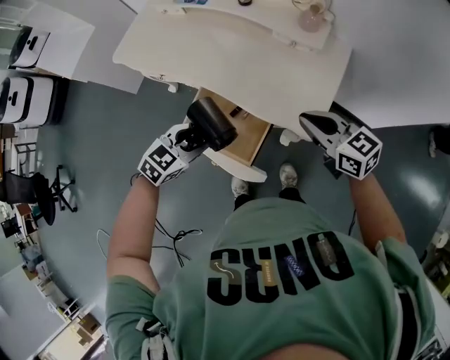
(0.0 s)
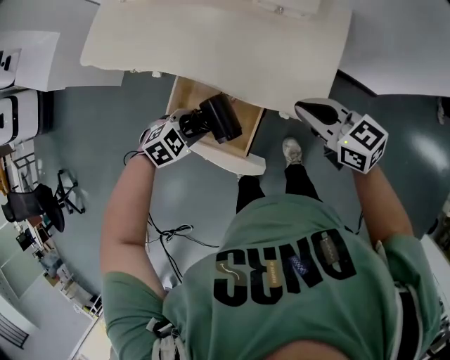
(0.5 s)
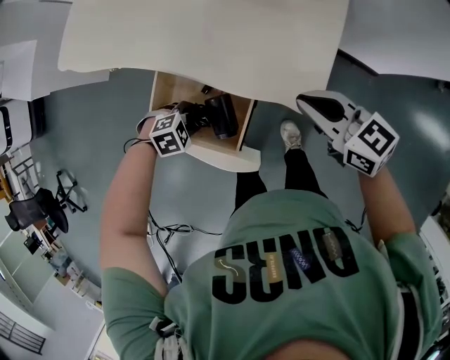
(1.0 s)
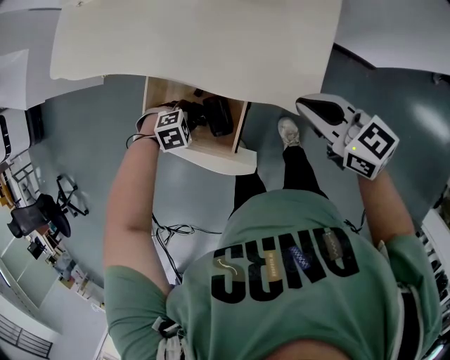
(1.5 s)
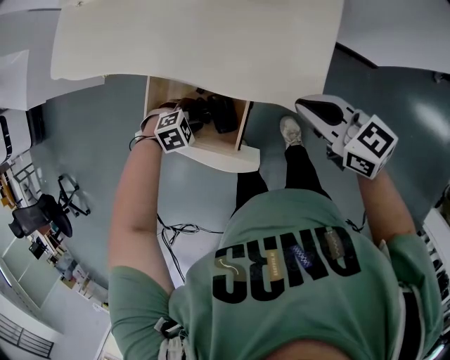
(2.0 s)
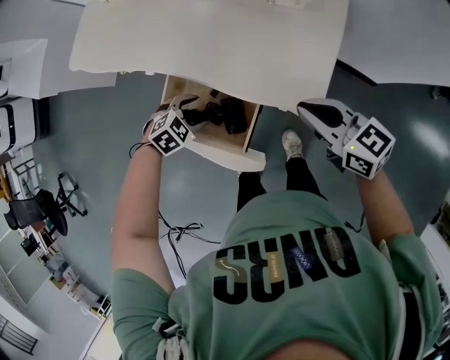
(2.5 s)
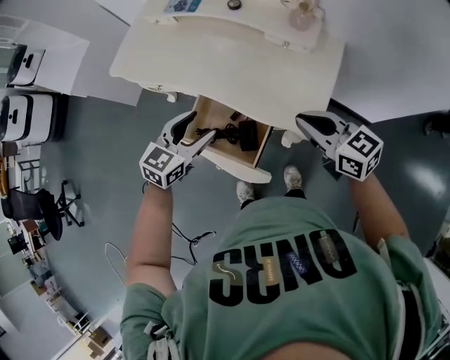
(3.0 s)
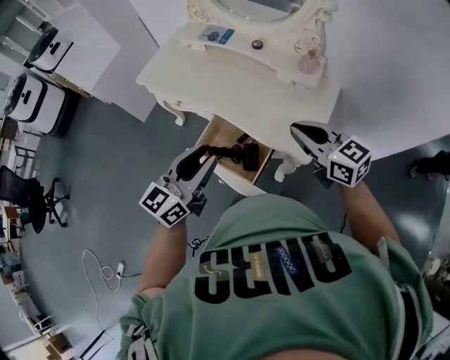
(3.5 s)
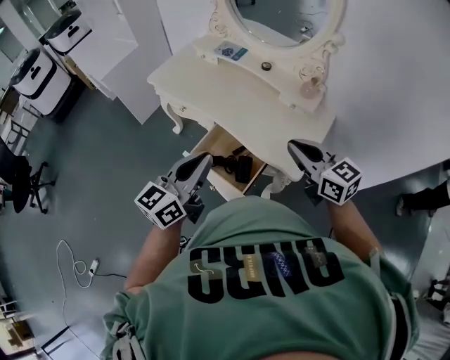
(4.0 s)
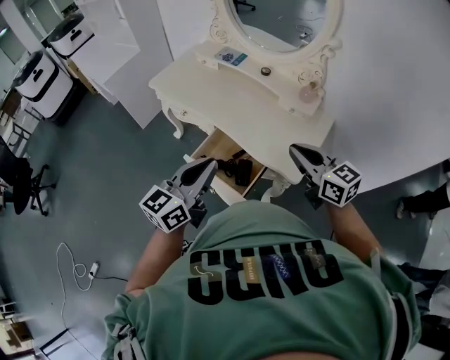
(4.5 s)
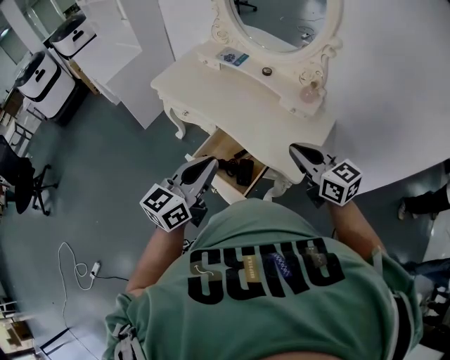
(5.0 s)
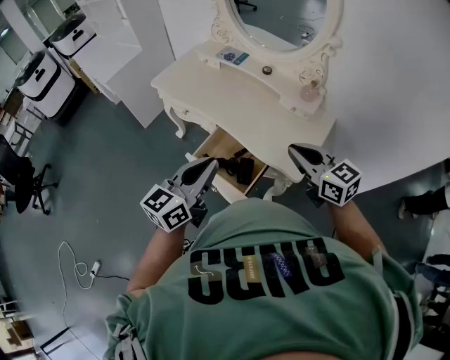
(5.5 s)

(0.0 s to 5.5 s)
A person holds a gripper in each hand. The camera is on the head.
0.0 s - 2.0 s: The right gripper moves downward, approximately 15 cm. The left gripper is displaced downward by roughly 30 cm, and angles its fingers downward, by about 30 degrees.
2.0 s - 3.5 s: The right gripper goes about 25 cm upward, while the left gripper goes roughly 50 cm upward, and angles its fingers upward, by approximately 80 degrees.
3.5 s - 5.5 s: The left gripper shifts by approximately 5 cm, and closes its fingers. The right gripper shifts by approximately 5 cm.

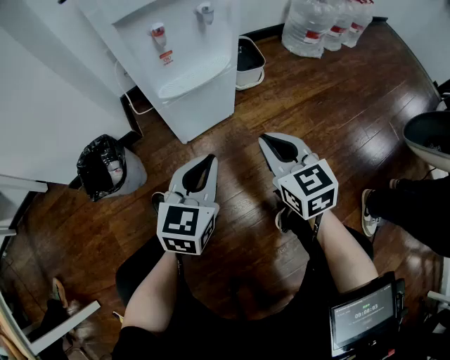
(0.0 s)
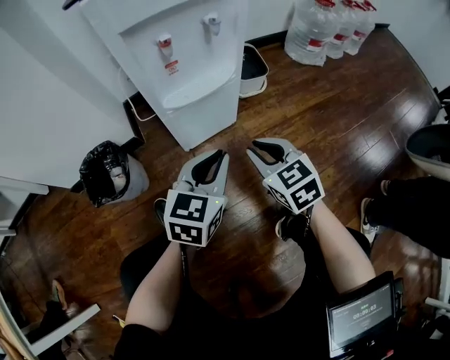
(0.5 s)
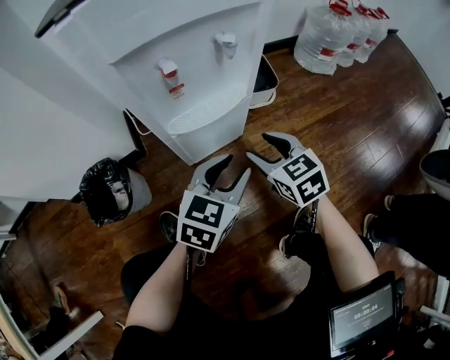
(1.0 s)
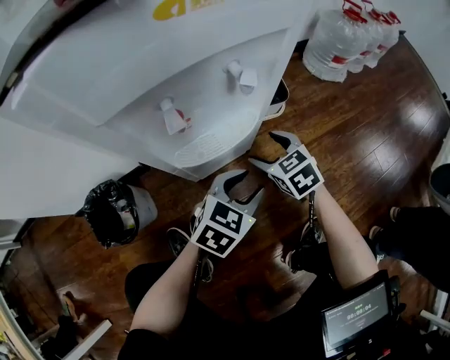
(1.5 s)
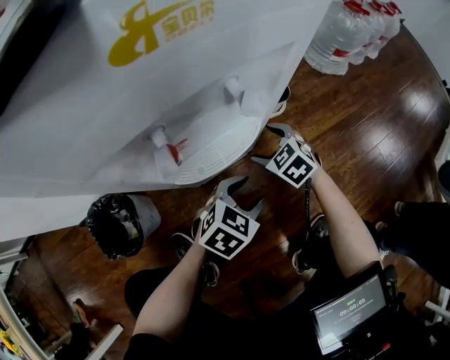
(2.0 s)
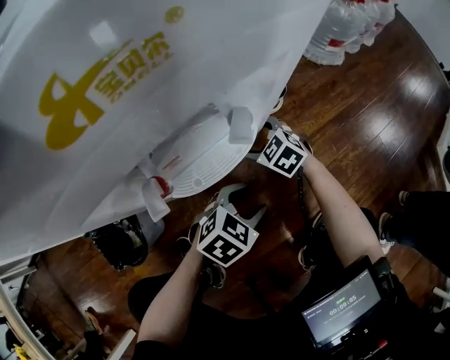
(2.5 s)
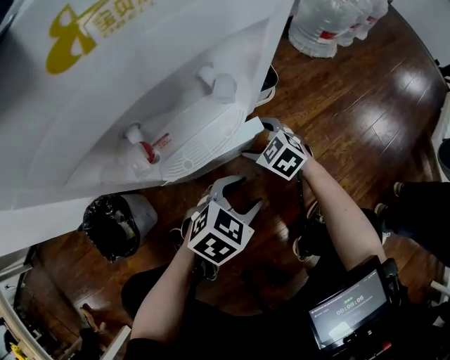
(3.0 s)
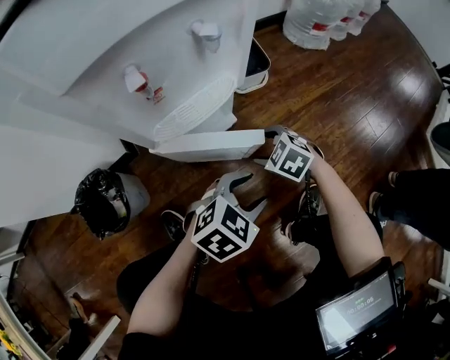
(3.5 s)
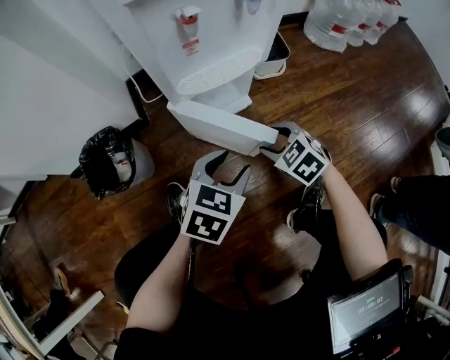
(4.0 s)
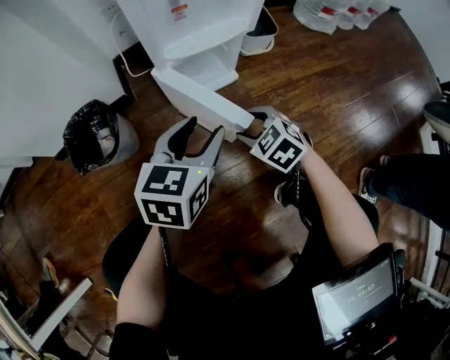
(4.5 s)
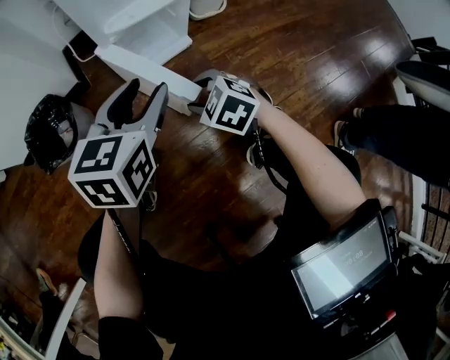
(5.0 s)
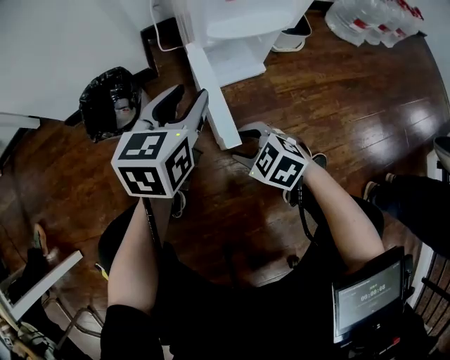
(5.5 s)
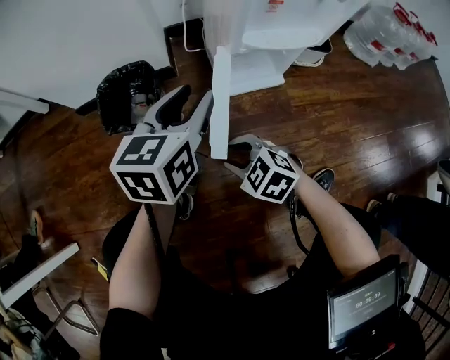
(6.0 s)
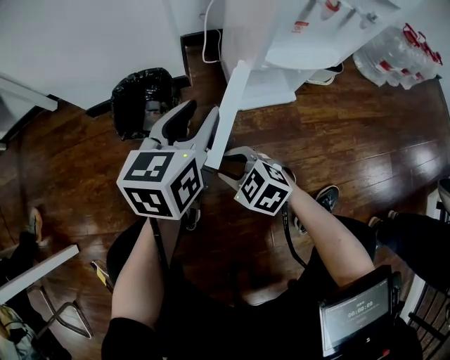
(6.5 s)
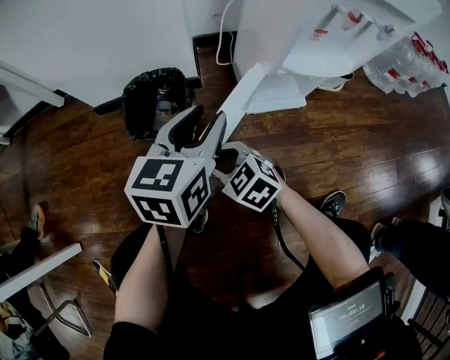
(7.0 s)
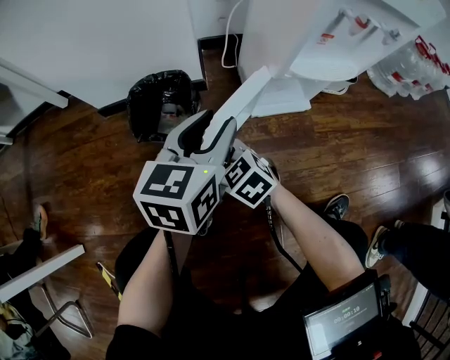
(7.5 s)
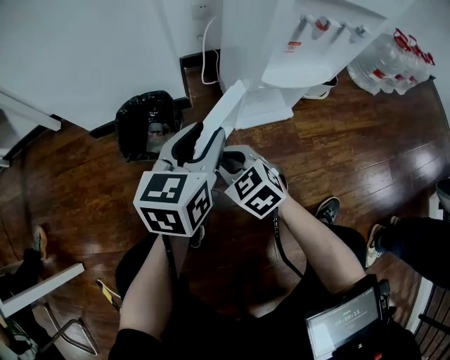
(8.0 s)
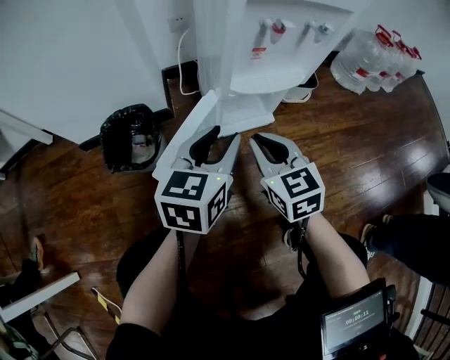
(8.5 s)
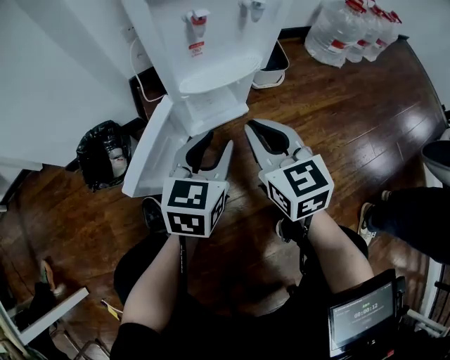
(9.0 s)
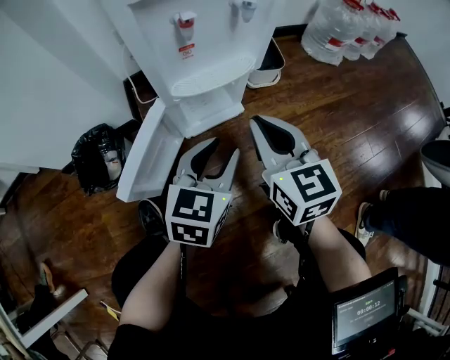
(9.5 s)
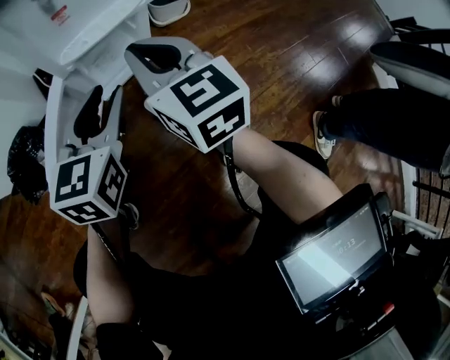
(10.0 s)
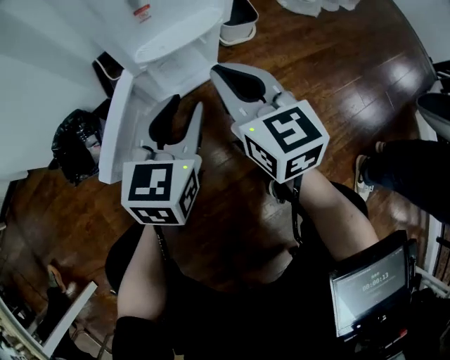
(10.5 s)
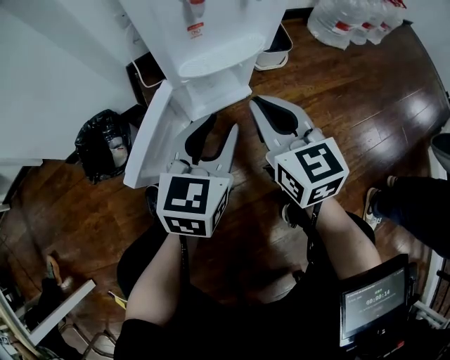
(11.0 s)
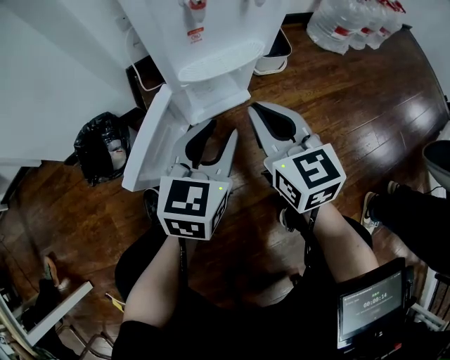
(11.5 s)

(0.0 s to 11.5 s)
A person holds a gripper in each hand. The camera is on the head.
0.0 s - 2.0 s: The right gripper goes about 30 cm forward and downward, rotates some 30 degrees, and opens up; the left gripper shifts some 20 cm forward and downward, turns by roughly 40 degrees, and opens.
2.0 s - 4.0 s: The right gripper goes approximately 20 cm backward, and closes its fingers. Meanwhile the left gripper goes about 10 cm backward.
4.0 s - 6.0 s: The left gripper moves approximately 20 cm, and rotates approximately 40 degrees. The right gripper changes place by some 25 cm, and rotates roughly 30 degrees.
6.0 s - 7.5 s: The left gripper shifts about 5 cm to the left, while the right gripper moves to the left and forward, roughly 15 cm.
7.5 s - 9.5 s: The left gripper changes place by approximately 25 cm, and rotates roughly 20 degrees. Meanwhile the right gripper moves roughly 40 cm, and swivels some 50 degrees.
9.5 s - 11.5 s: There are only small adjustments of the grippers.

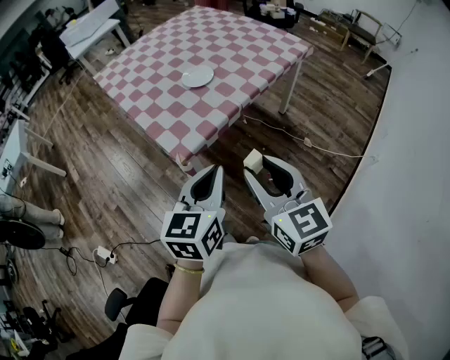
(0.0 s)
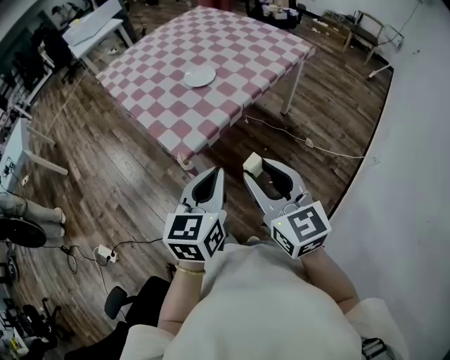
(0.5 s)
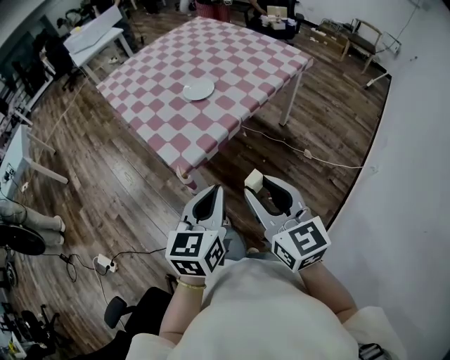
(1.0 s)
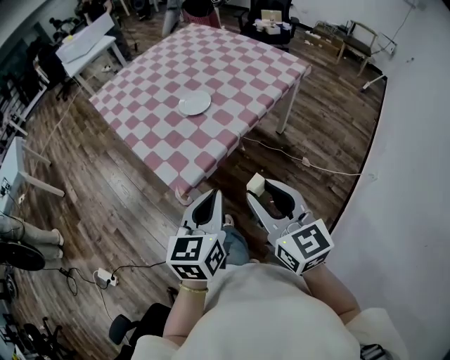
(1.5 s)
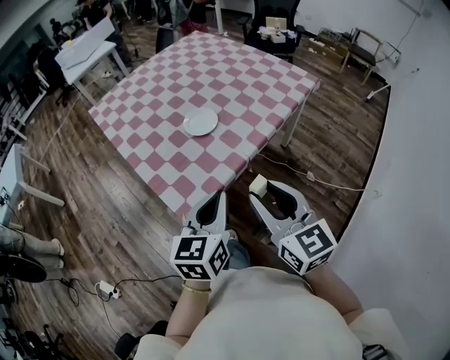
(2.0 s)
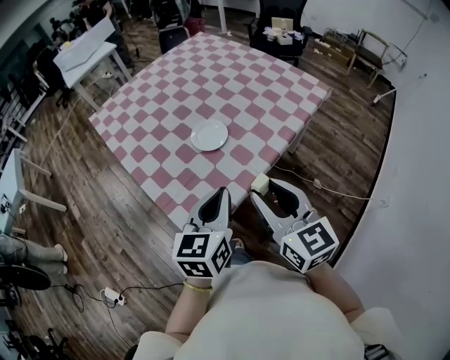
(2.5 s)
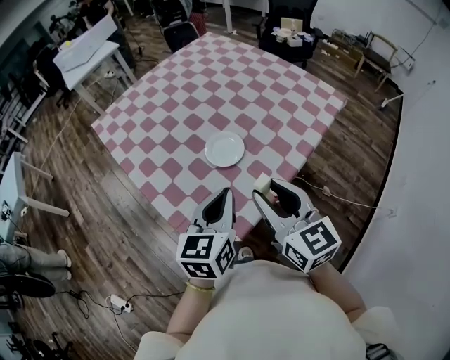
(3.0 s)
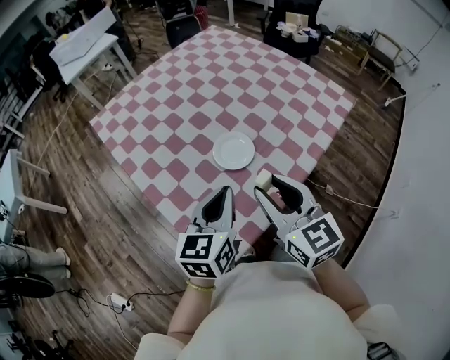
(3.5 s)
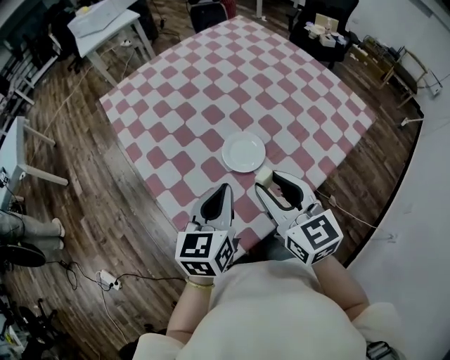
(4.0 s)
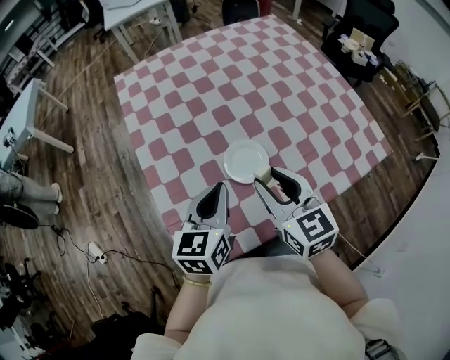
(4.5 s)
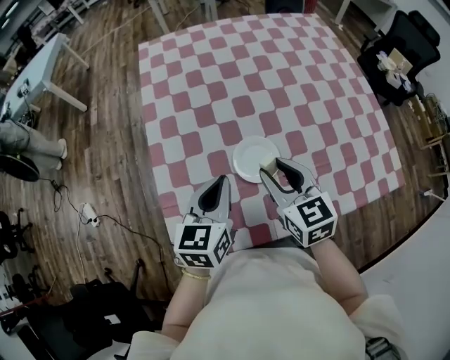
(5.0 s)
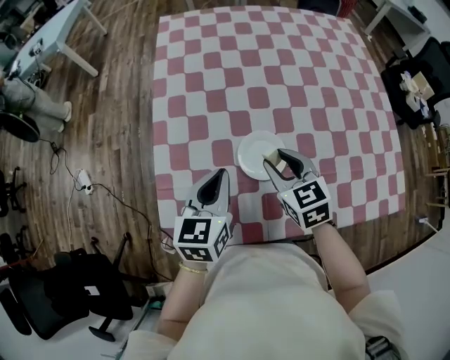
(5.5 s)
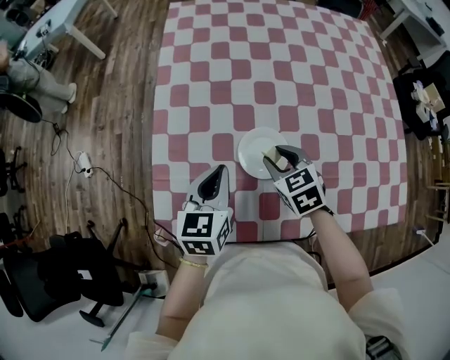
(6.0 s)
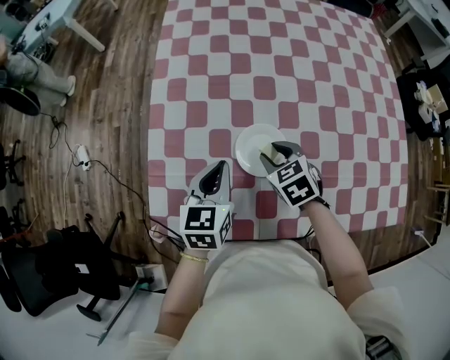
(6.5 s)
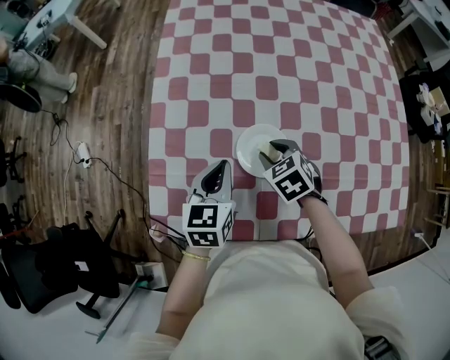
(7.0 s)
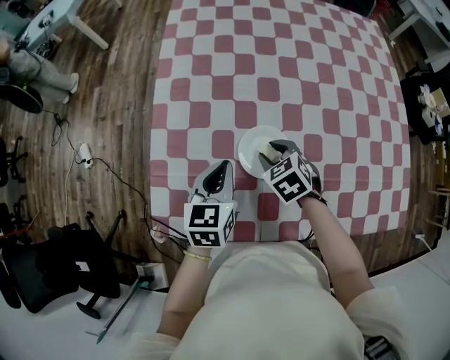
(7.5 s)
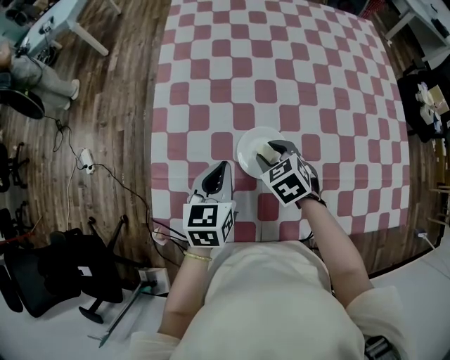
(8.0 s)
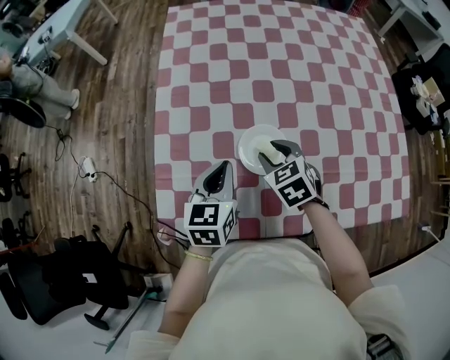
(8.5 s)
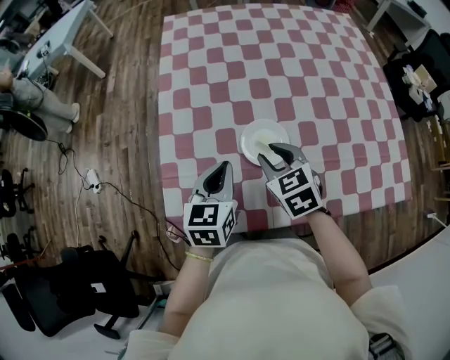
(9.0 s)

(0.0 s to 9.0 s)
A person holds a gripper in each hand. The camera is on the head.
0.0 s - 2.0 s: The two grippers go about 15 cm forward.
2.0 s - 4.5 s: The two grippers go some 35 cm forward. The left gripper rotates some 20 degrees. Meanwhile the right gripper swivels some 20 degrees.
4.5 s - 7.0 s: The right gripper is displaced downward by some 20 cm, and points its fingers some 40 degrees further downward, while the left gripper heads downward, covering approximately 10 cm, and turns by roughly 30 degrees.
7.0 s - 9.0 s: The left gripper changes place by about 5 cm. The right gripper moves upward and backward, approximately 10 cm.
